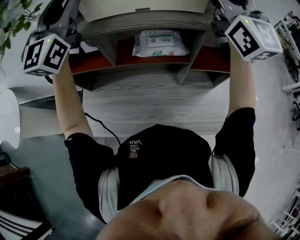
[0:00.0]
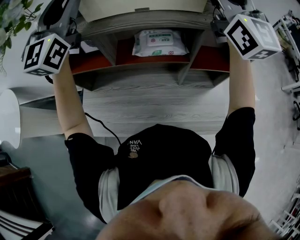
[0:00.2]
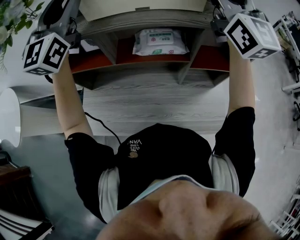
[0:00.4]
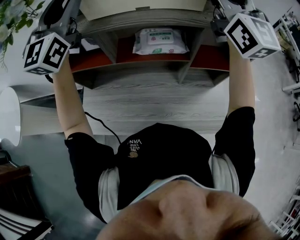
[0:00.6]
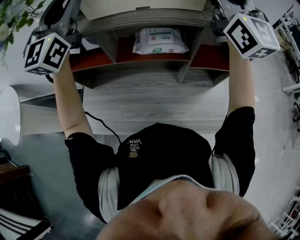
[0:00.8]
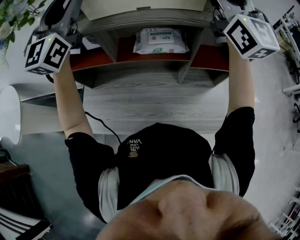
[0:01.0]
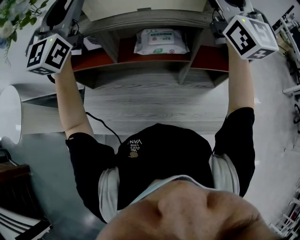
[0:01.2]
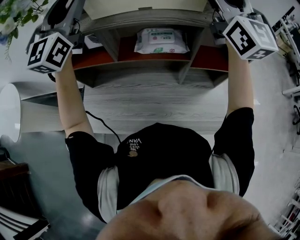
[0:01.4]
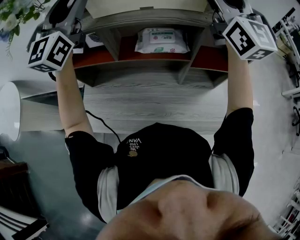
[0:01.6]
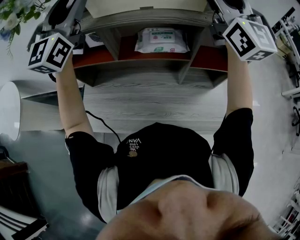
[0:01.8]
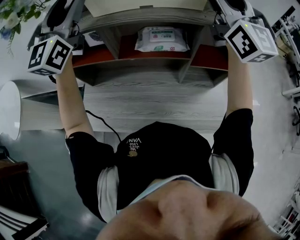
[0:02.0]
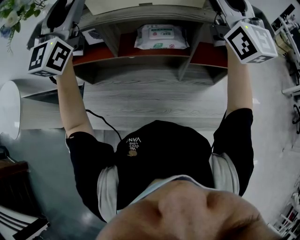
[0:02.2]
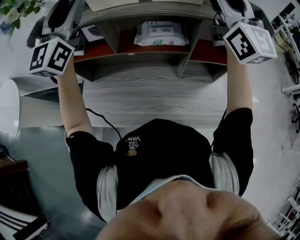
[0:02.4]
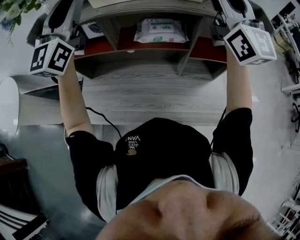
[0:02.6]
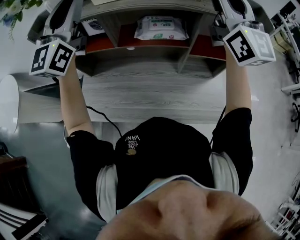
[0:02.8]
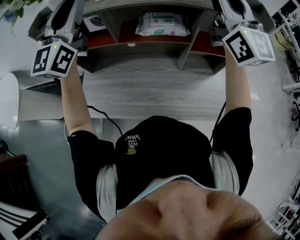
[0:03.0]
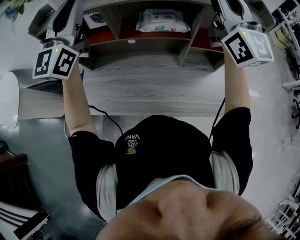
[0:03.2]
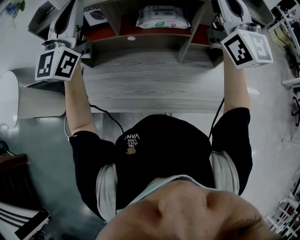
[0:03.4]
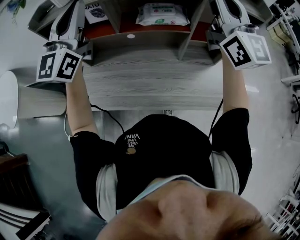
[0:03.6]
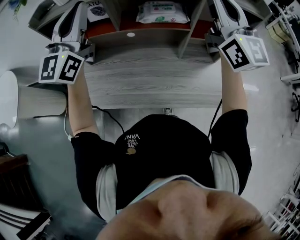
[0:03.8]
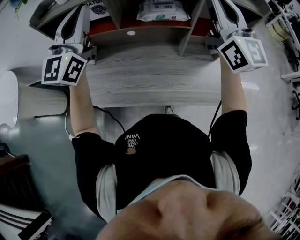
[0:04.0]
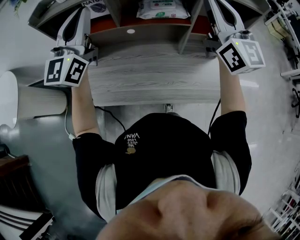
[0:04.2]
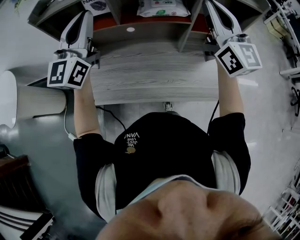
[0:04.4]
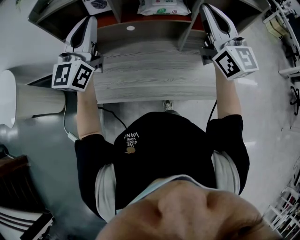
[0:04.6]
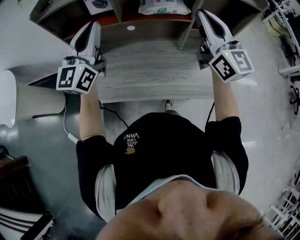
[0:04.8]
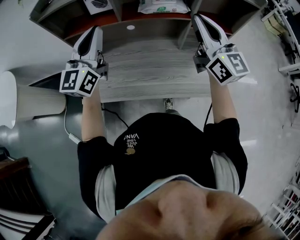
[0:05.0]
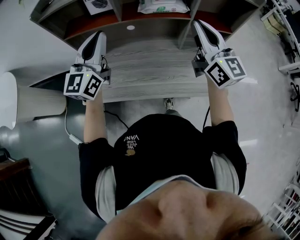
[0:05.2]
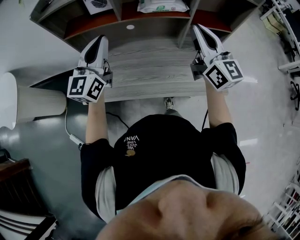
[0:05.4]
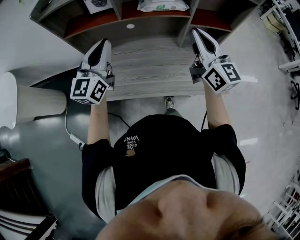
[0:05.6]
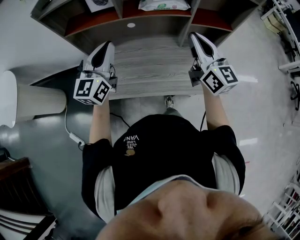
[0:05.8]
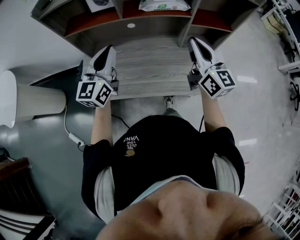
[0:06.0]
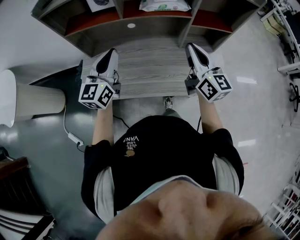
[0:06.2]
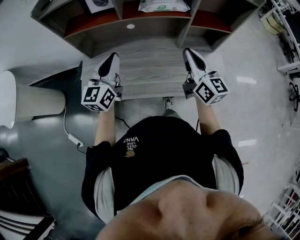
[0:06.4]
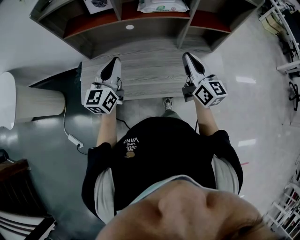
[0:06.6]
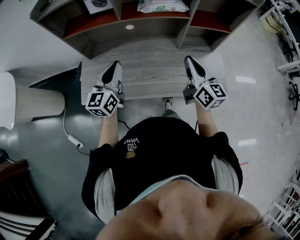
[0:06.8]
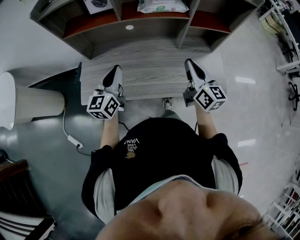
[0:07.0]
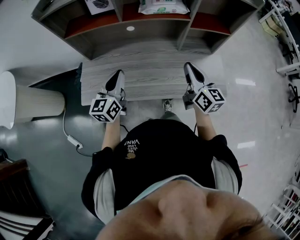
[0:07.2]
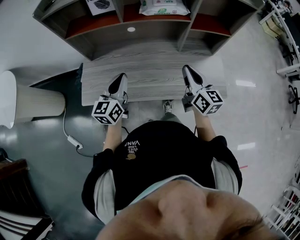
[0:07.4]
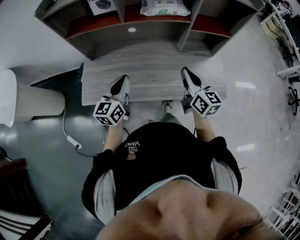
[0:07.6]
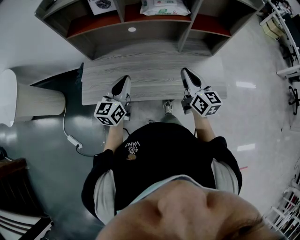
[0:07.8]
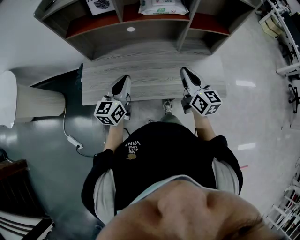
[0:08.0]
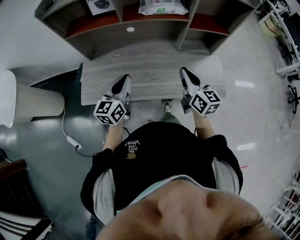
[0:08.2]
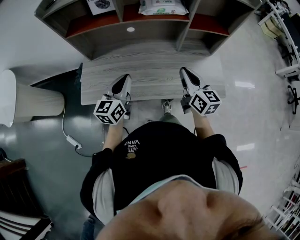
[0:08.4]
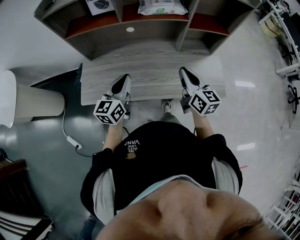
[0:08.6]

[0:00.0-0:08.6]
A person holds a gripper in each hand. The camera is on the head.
0:00.0 to 0:01.4: The grippers move only a little.
0:01.4 to 0:02.8: Both grippers travel together backward, roughly 5 cm.
0:02.8 to 0:04.4: Both grippers move downward and backward, approximately 15 cm.
0:04.4 to 0:05.8: The right gripper travels downward and backward by roughly 15 cm, while the left gripper moves downward, approximately 15 cm.
0:05.8 to 0:07.2: The left gripper heads downward and backward, covering some 15 cm, while the right gripper goes some 10 cm downward.
0:07.2 to 0:08.6: The grippers move only a little.

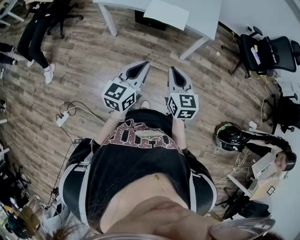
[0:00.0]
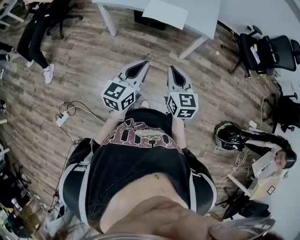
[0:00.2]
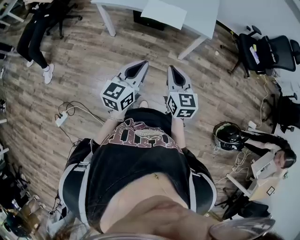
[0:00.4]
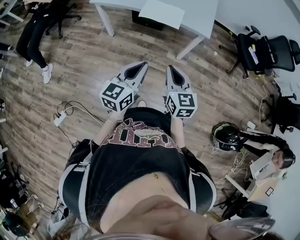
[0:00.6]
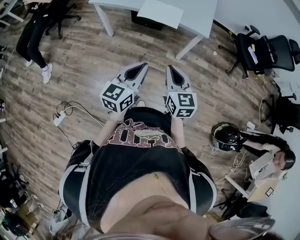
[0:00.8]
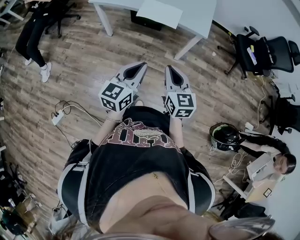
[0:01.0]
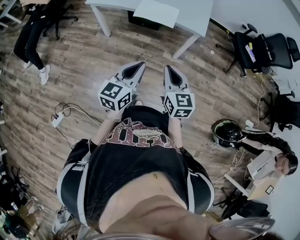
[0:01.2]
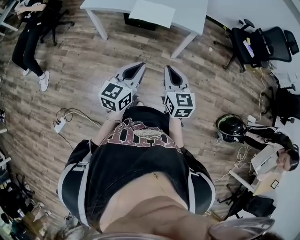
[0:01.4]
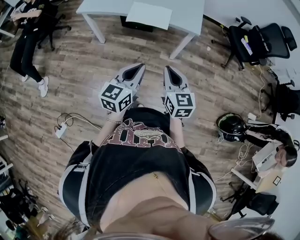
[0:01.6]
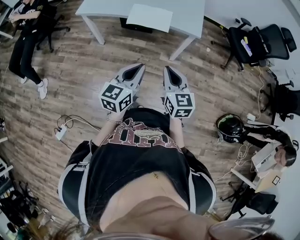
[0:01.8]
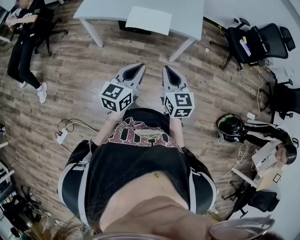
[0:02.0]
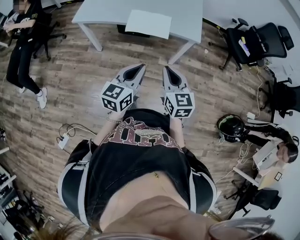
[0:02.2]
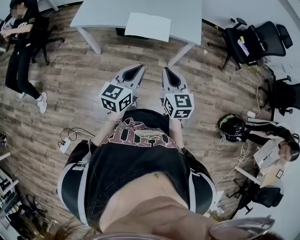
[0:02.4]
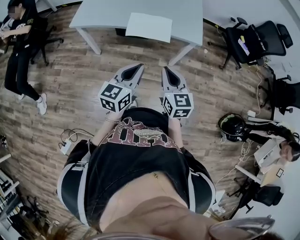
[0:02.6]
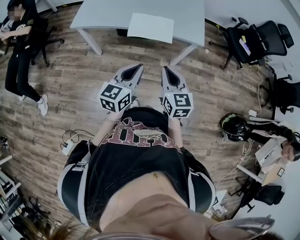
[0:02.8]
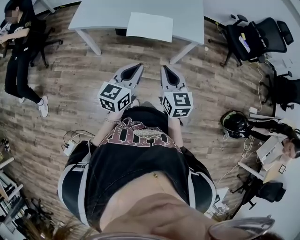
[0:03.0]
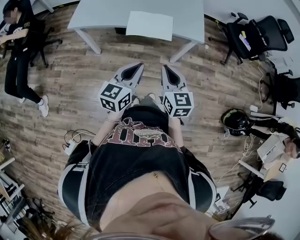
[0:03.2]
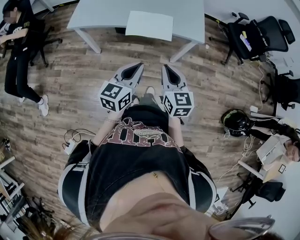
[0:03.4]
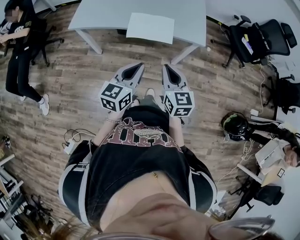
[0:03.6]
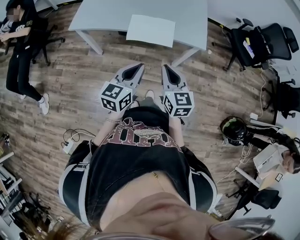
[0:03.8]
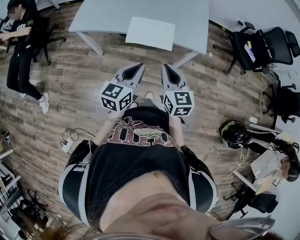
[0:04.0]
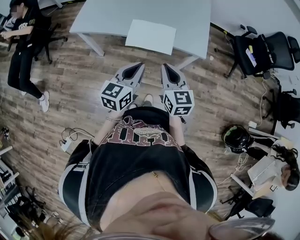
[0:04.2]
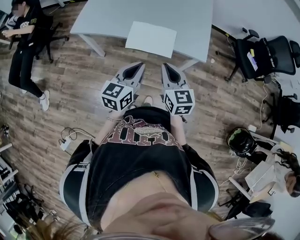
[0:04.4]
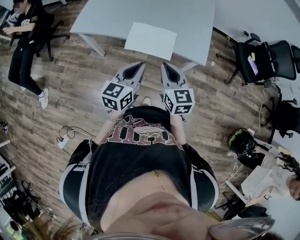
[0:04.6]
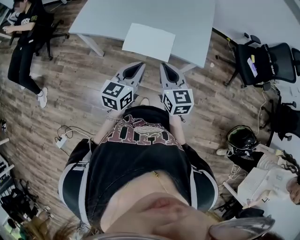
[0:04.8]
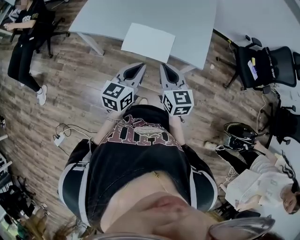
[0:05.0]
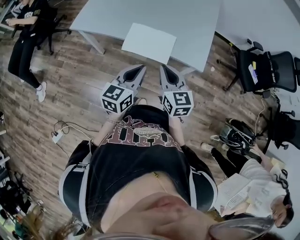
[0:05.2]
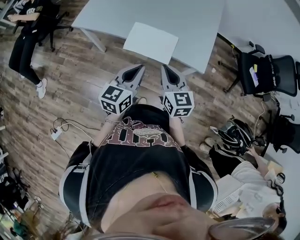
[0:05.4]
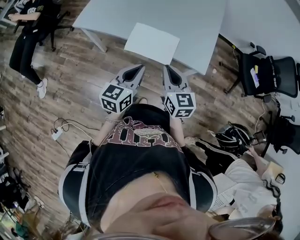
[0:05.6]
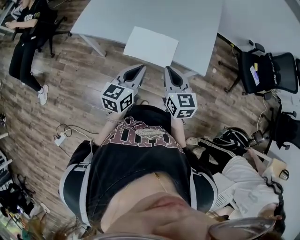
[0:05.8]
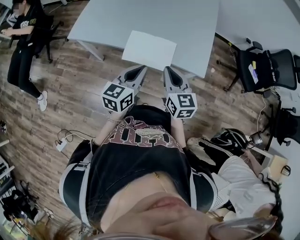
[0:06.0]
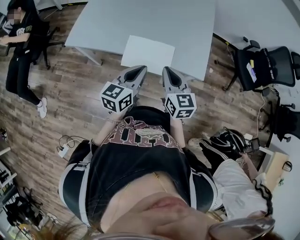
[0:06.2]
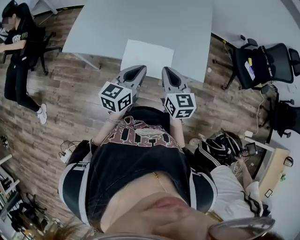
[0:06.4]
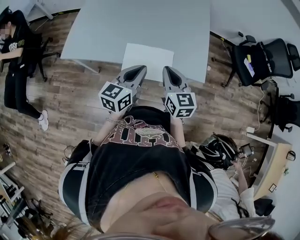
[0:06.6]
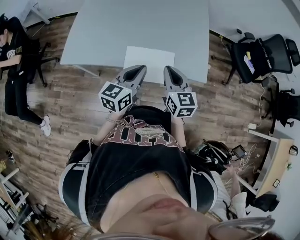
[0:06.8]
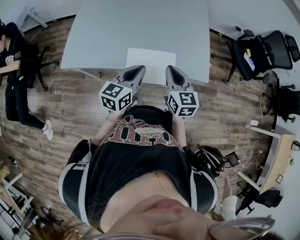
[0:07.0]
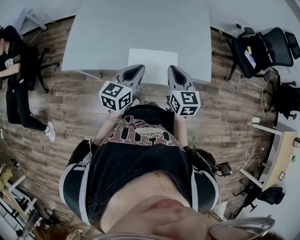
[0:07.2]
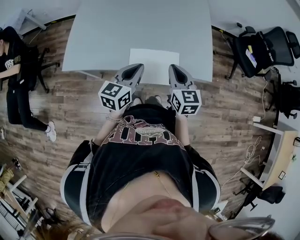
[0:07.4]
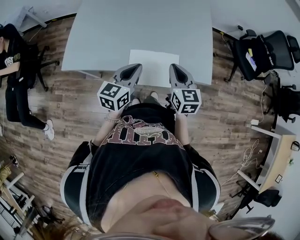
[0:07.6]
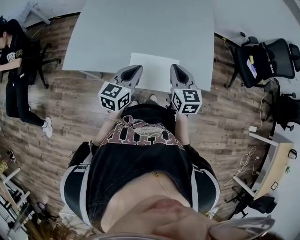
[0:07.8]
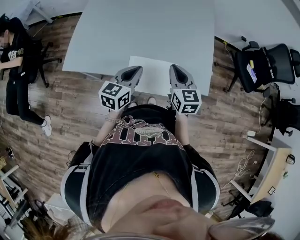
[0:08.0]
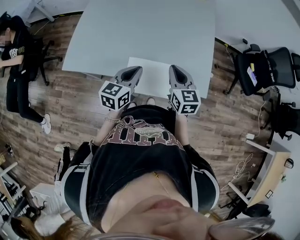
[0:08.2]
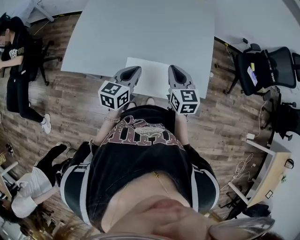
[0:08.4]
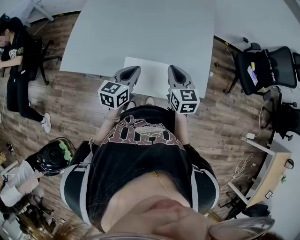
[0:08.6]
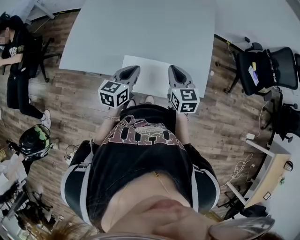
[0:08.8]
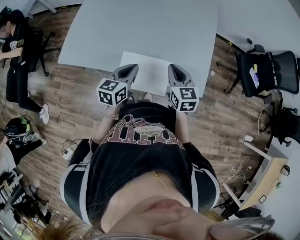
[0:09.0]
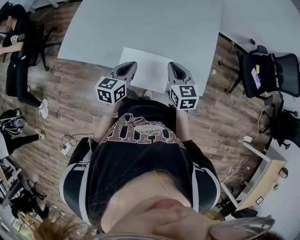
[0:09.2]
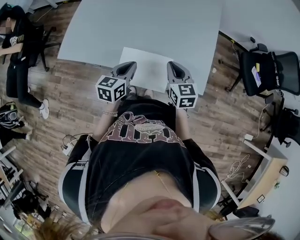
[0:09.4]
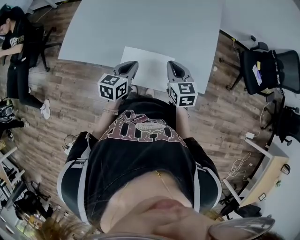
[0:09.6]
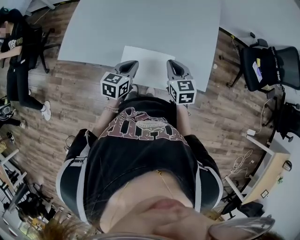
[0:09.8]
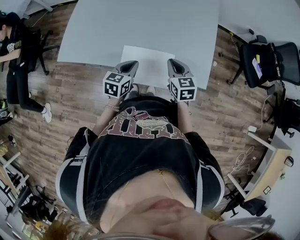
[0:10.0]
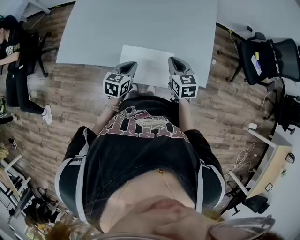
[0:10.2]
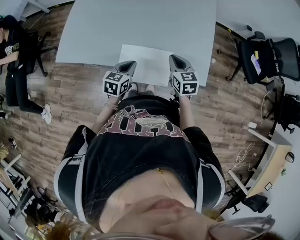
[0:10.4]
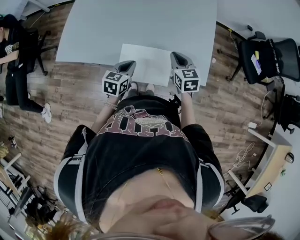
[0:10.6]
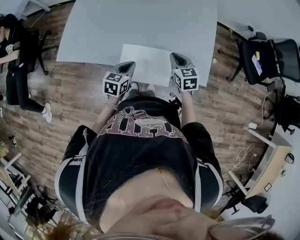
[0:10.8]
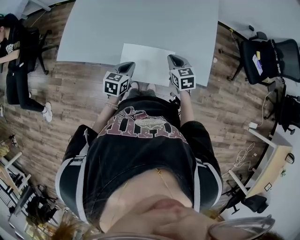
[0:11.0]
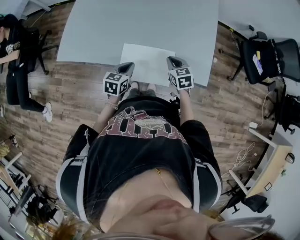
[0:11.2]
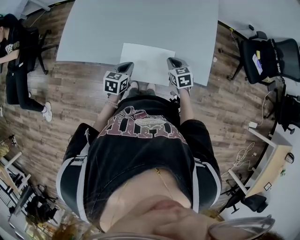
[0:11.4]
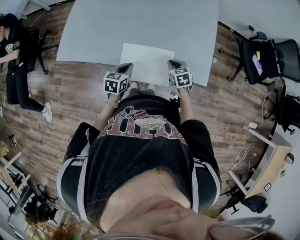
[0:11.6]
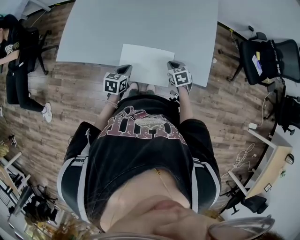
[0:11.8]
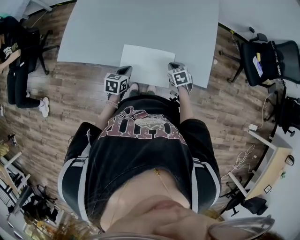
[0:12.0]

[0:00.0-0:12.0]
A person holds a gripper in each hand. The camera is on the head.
0:00.0 to 0:01.6: Both grippers travel together to the right, about 5 cm.
0:01.6 to 0:03.0: The right gripper goes some 15 cm to the left and forward; the left gripper moves forward and to the left, about 15 cm.
0:03.0 to 0:04.4: The two grippers go roughly 15 cm forward.
0:04.4 to 0:06.0: Both grippers travel together forward, approximately 10 cm.
0:06.0 to 0:07.6: The grippers both shift forward and to the left by approximately 15 cm.
0:07.6 to 0:09.0: The right gripper shifts roughly 10 cm forward and to the right, while the left gripper heads forward, covering some 5 cm.
0:09.0 to 0:10.4: The grippers both shift downward by about 5 cm.
0:10.4 to 0:12.0: The left gripper heads downward, covering about 10 cm, while the right gripper shifts some 15 cm downward, and swivels approximately 20 degrees.

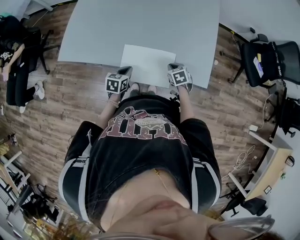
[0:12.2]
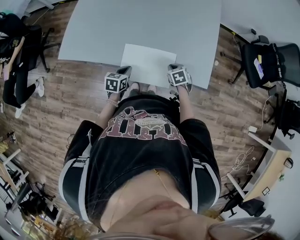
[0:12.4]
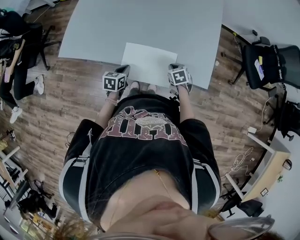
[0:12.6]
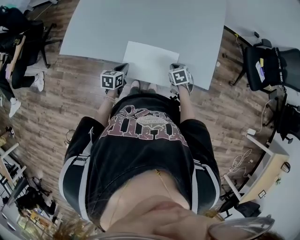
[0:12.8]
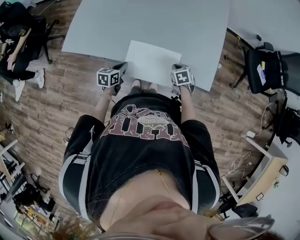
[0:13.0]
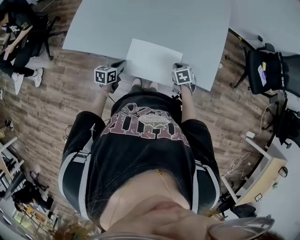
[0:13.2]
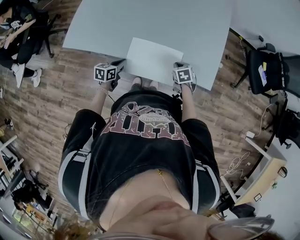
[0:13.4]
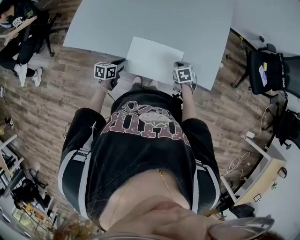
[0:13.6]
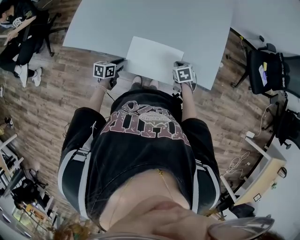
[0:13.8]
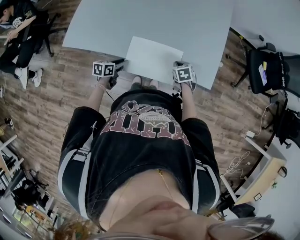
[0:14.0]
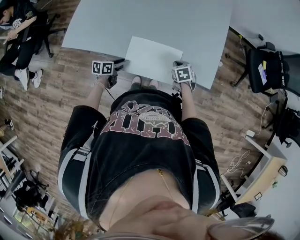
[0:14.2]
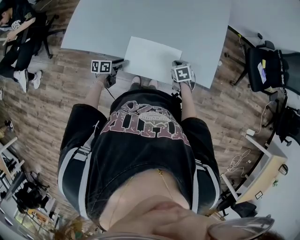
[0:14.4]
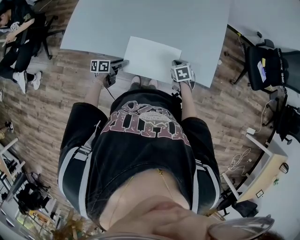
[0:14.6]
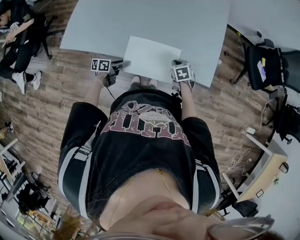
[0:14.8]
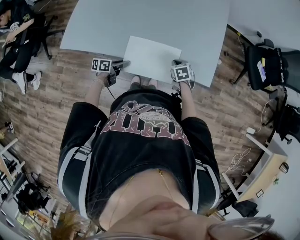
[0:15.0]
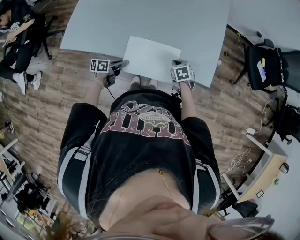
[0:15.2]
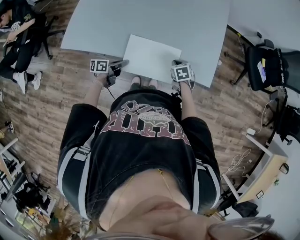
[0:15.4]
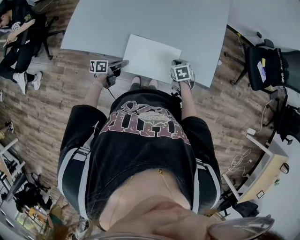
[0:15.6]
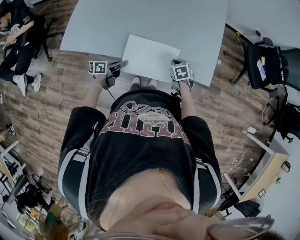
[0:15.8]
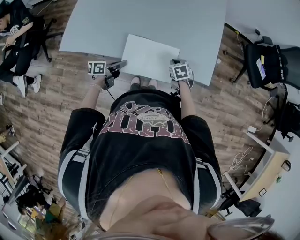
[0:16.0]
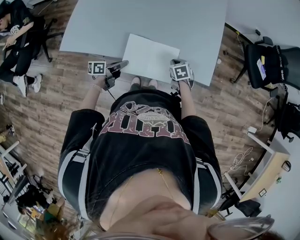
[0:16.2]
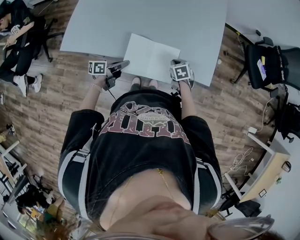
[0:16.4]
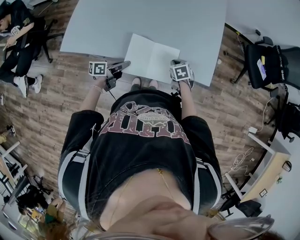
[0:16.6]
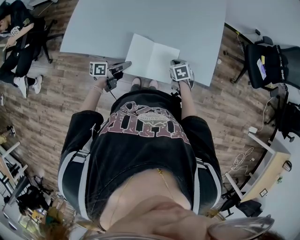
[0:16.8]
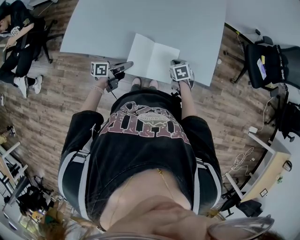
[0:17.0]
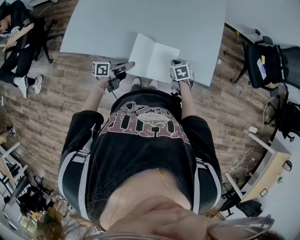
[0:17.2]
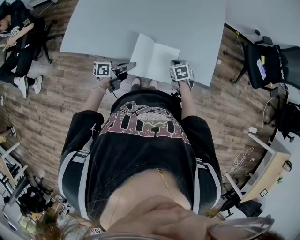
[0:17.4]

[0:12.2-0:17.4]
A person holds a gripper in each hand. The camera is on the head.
0:12.2 to 0:14.0: The left gripper shifts some 10 cm to the left and downward, and opens its fingers.
0:14.0 to 0:15.6: The left gripper swivels about 30 degrees, and closes up.
0:15.6 to 0:17.4: The left gripper heads upward and to the right, covering roughly 10 cm.
